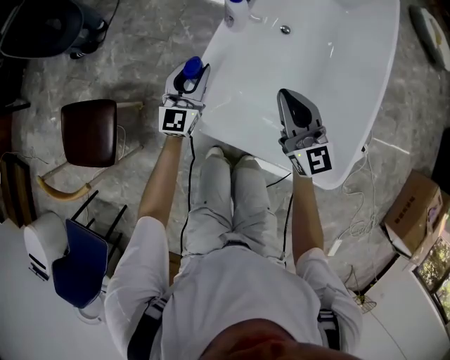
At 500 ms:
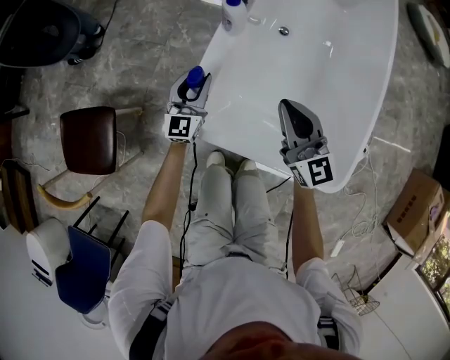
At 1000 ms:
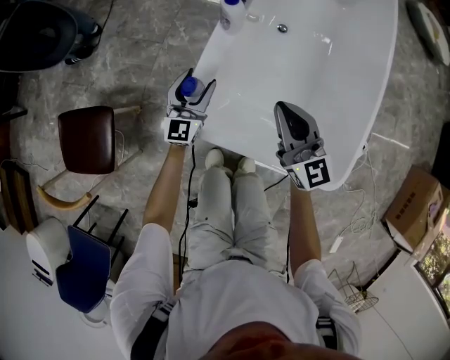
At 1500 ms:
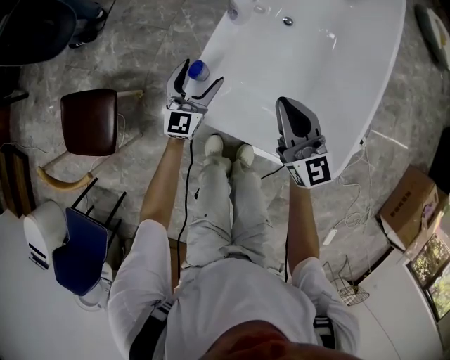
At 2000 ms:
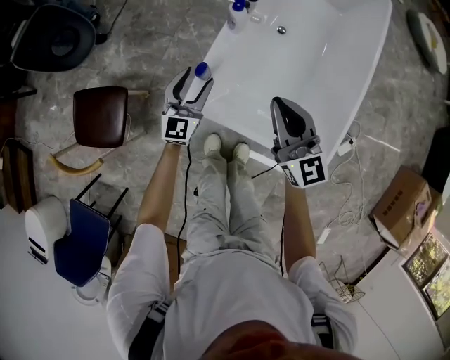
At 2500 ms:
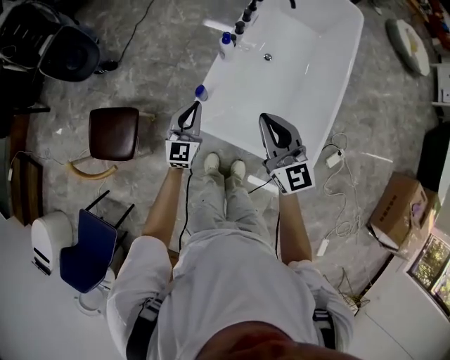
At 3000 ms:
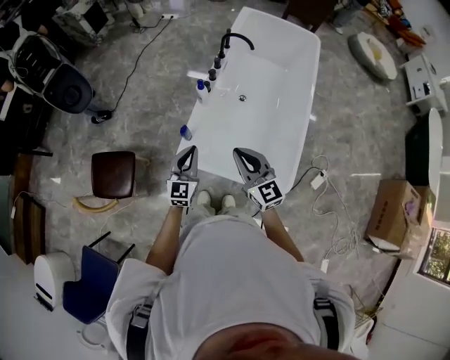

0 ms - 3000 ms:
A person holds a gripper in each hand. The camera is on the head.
0 ms - 1500 ms: The left gripper opens its fingers.
1500 ms - 3000 ms: The grippers both shift upward and backward by approximately 30 cm. The left gripper closes.

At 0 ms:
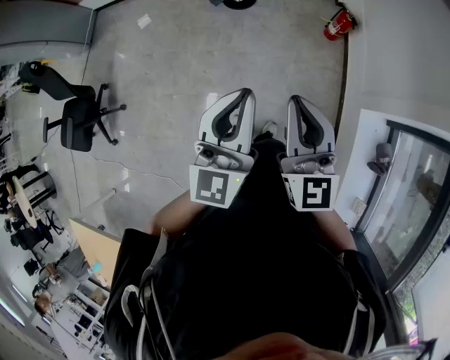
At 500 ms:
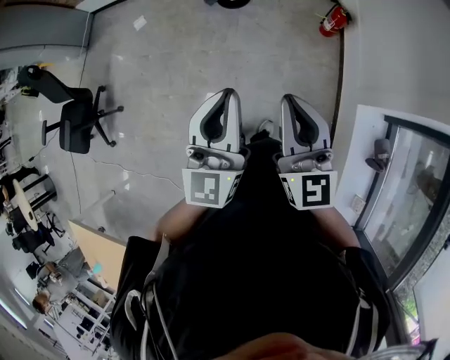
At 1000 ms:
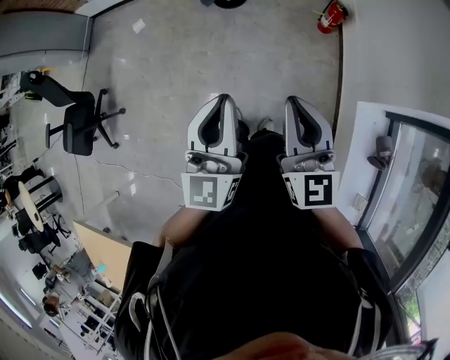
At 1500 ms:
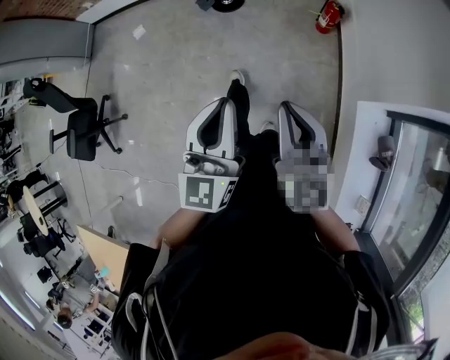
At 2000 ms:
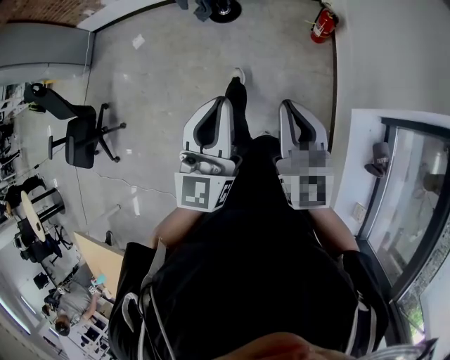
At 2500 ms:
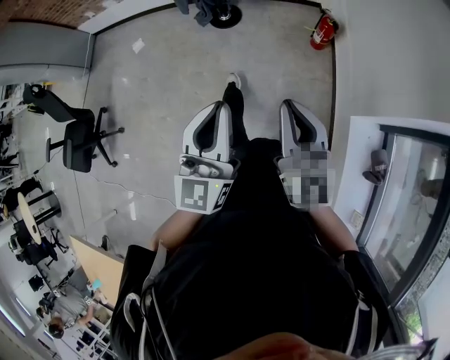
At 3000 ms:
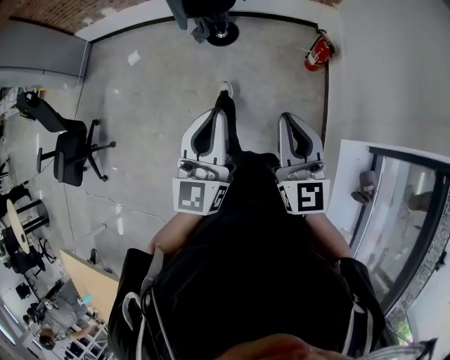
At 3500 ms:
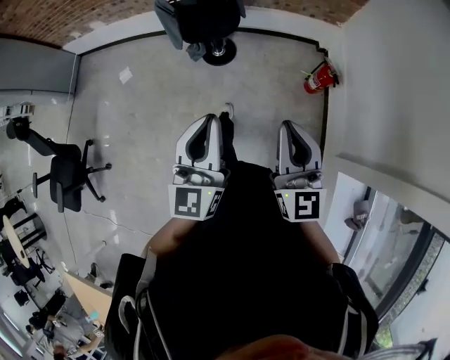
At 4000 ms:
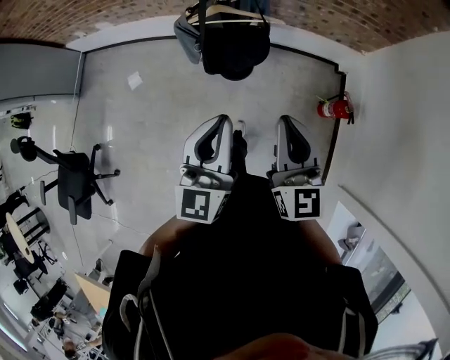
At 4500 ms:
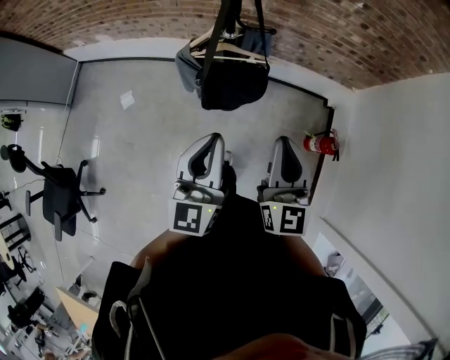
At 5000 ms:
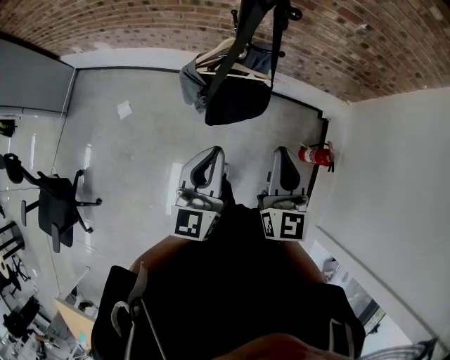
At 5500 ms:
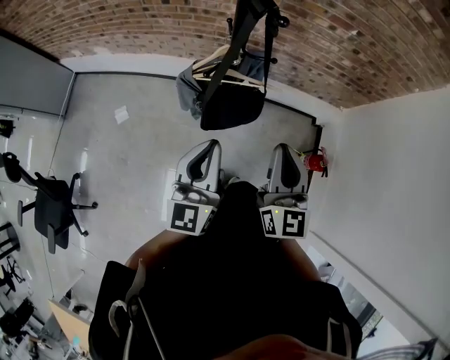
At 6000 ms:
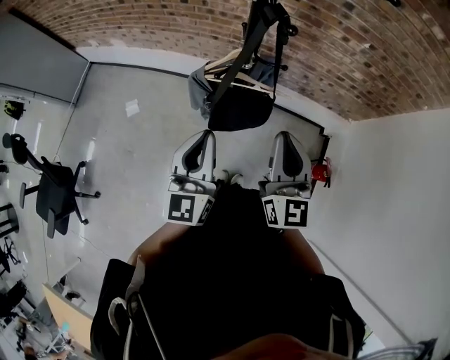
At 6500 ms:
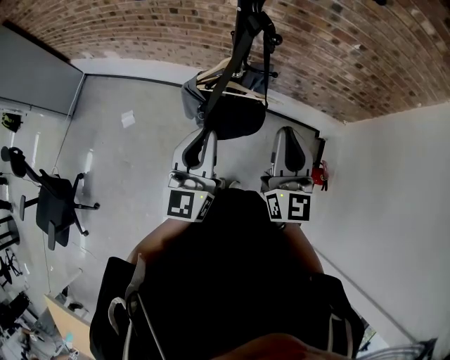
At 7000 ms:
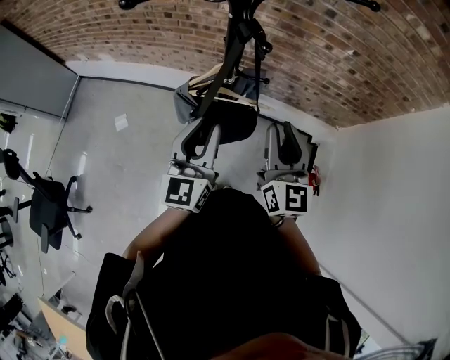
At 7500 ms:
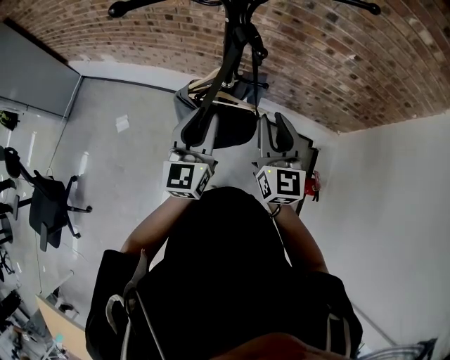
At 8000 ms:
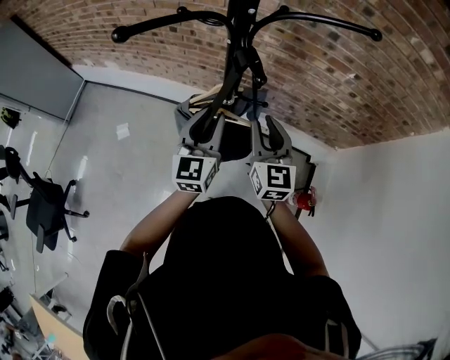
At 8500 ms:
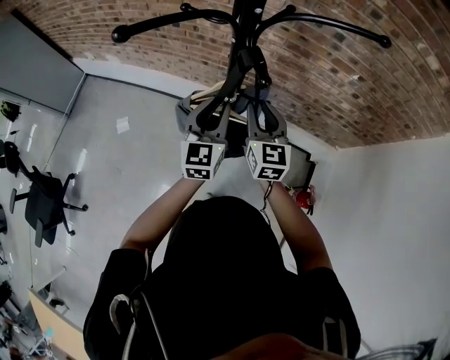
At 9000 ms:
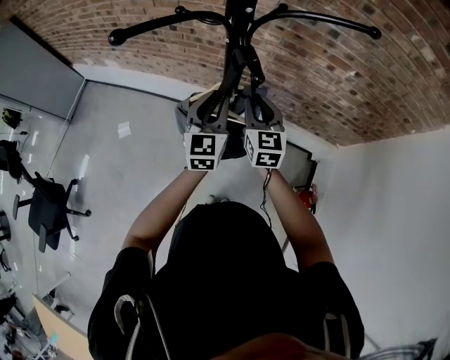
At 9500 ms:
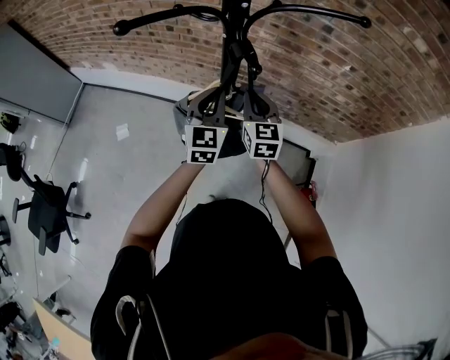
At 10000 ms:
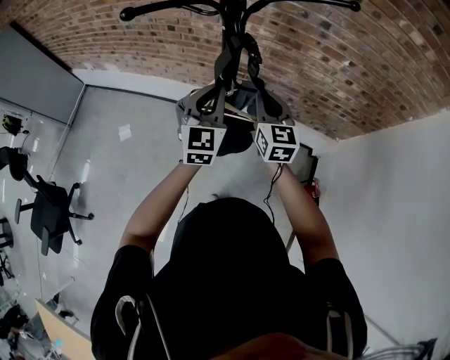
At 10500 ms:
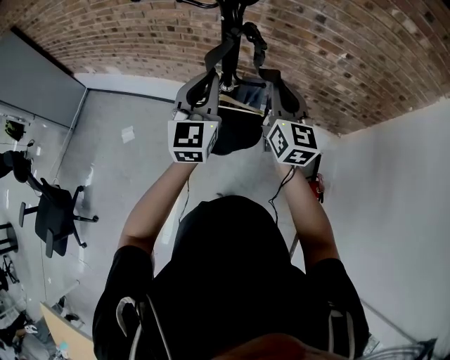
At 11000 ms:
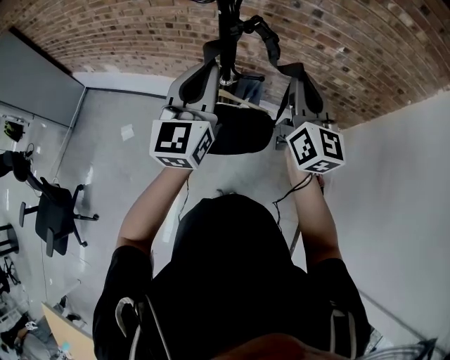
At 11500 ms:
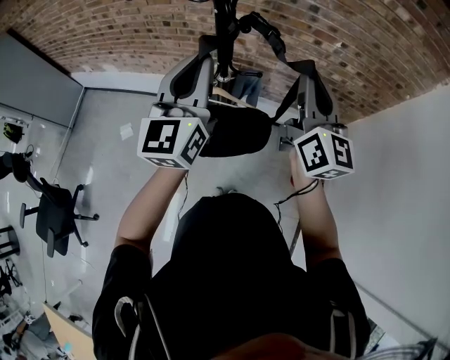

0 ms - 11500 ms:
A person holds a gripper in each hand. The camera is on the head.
0 ms - 2000 ms: The two grippers go about 10 cm to the right.
2000 ms - 4000 ms: Both grippers are carried forward, approximately 50 cm.
4000 ms - 6000 ms: The right gripper heads forward, covering about 15 cm; the left gripper is displaced forward and to the left by approximately 15 cm.
6000 ms - 7500 ms: The two grippers go about 10 cm forward.
7500 ms - 9500 ms: The left gripper goes roughly 10 cm forward. Meanwhile the right gripper heads forward and downward, covering roughly 15 cm.
9500 ms - 11500 ms: The left gripper moves upward and backward, some 20 cm, and swivels roughly 20 degrees; the right gripper travels upward, backward and to the right by approximately 25 cm, and rotates roughly 30 degrees.

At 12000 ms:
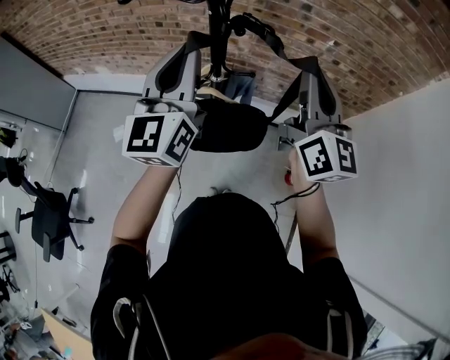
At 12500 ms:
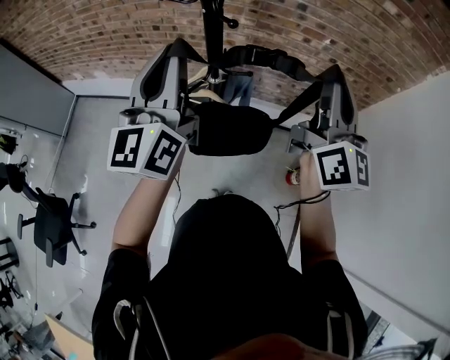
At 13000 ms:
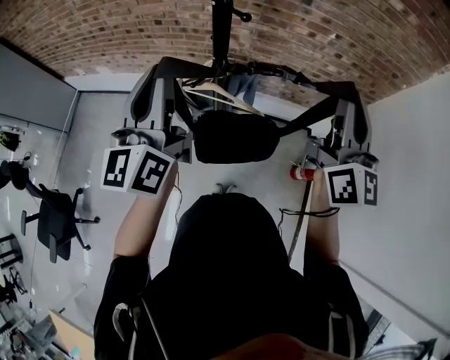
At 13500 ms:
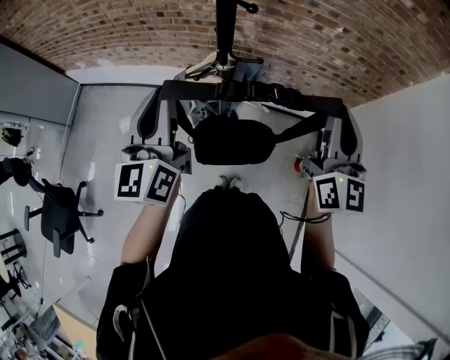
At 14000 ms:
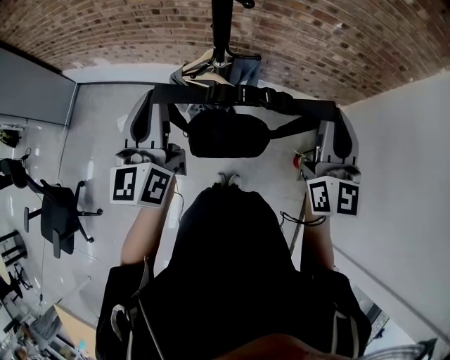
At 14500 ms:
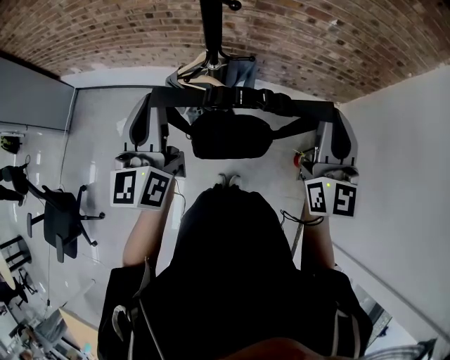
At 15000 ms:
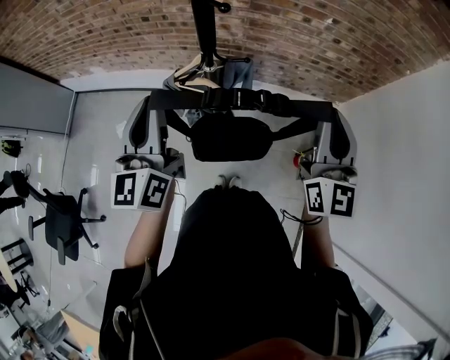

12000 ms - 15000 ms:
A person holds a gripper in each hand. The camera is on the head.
12000 ms - 13500 ms: The left gripper moves downward, backward and to the left, roughly 10 cm; the right gripper travels backward, to the right and downward by about 10 cm.
13500 ms - 15000 ms: The grippers make only small movements.

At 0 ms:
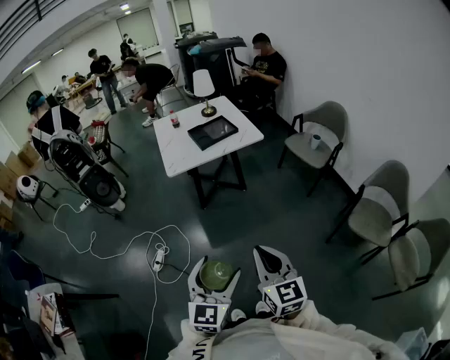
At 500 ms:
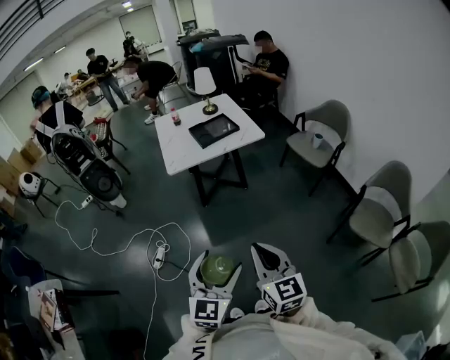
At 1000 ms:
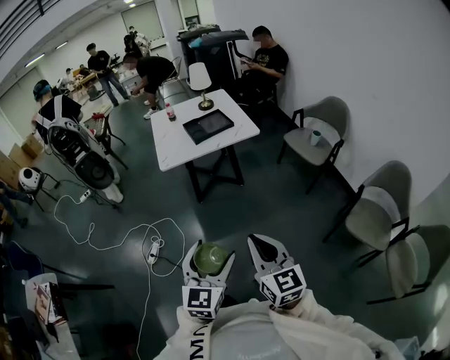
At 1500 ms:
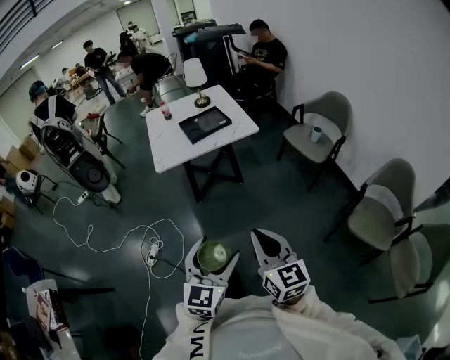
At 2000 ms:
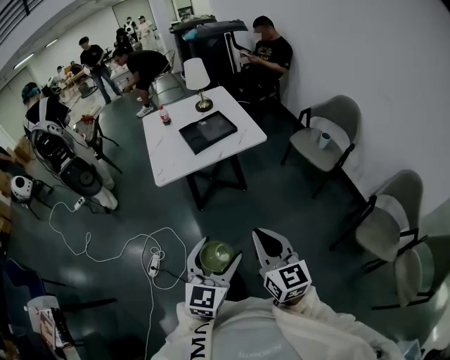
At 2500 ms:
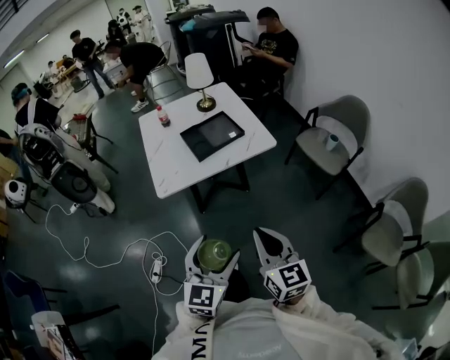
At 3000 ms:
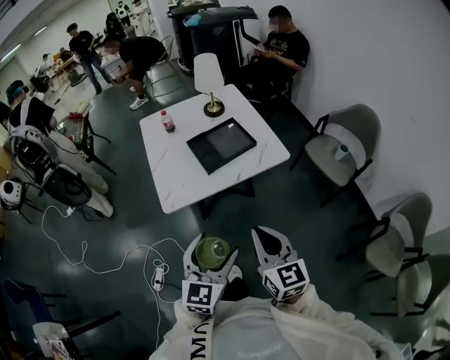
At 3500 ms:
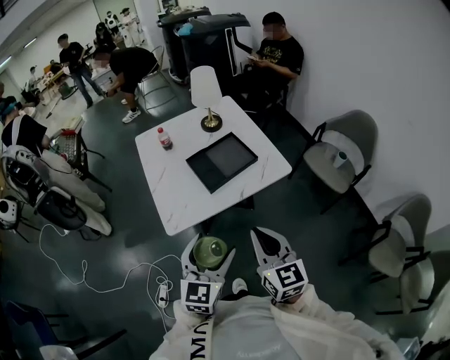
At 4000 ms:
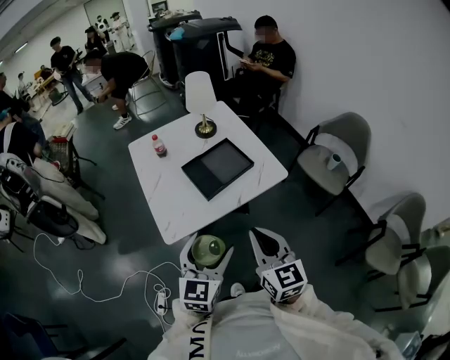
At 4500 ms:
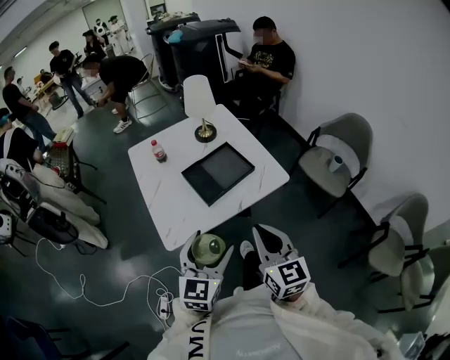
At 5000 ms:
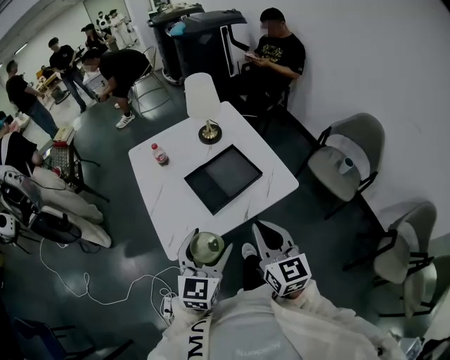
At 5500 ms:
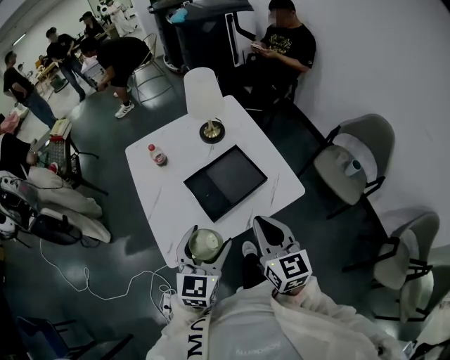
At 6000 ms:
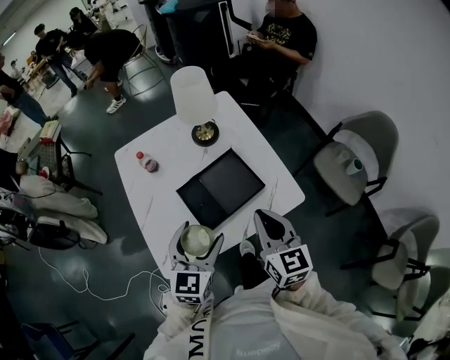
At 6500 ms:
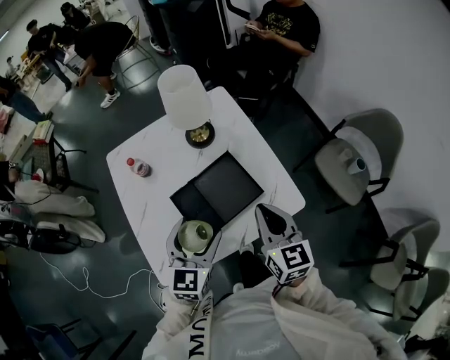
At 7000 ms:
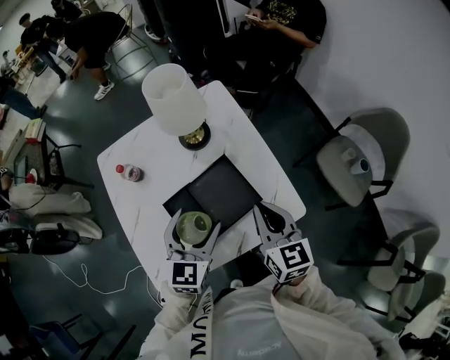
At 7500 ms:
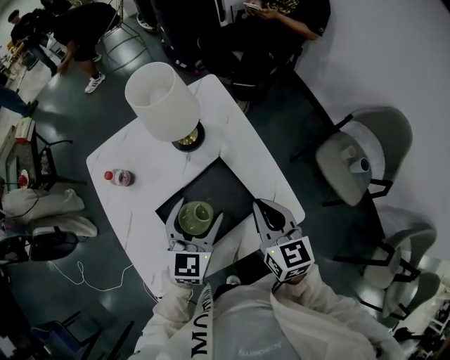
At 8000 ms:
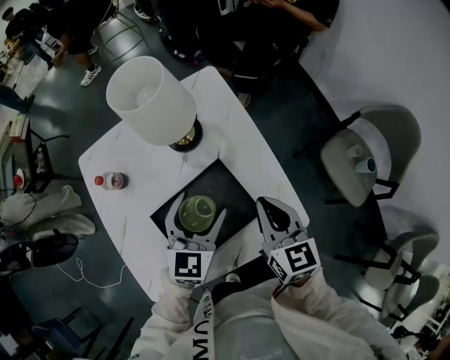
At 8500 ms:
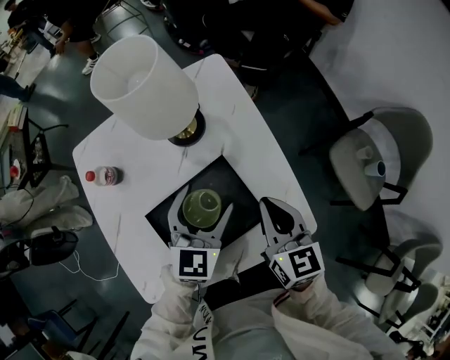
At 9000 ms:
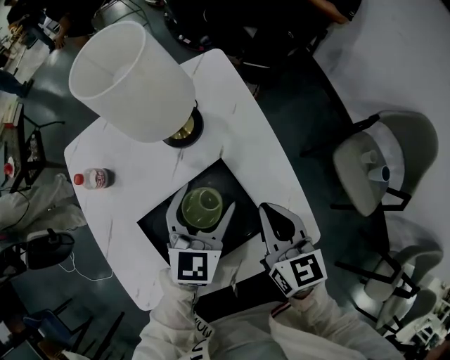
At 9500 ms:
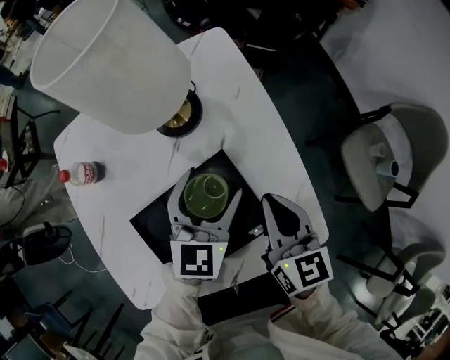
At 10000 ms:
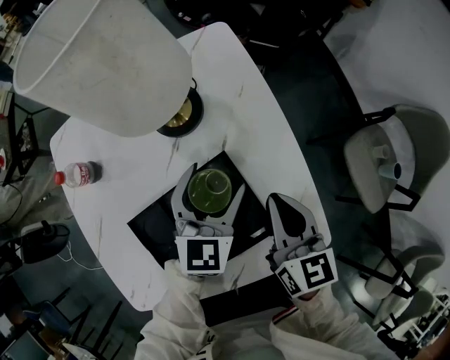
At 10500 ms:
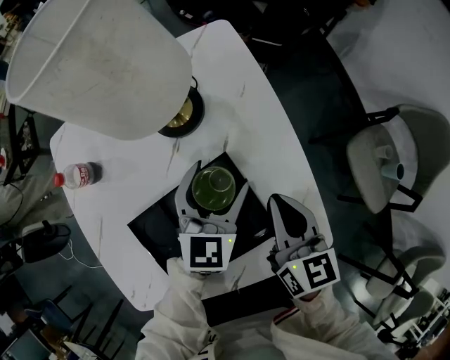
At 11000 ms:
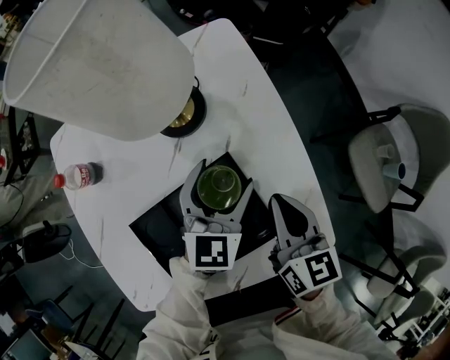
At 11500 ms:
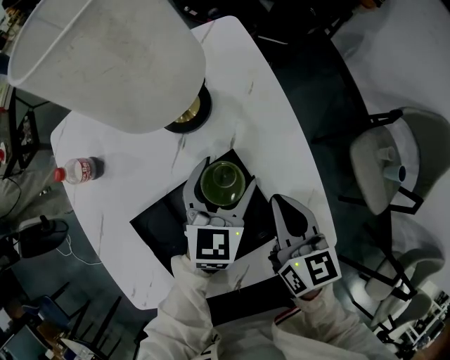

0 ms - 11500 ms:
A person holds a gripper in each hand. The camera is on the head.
0 ms - 2000 ms: The two grippers go roughly 20 cm forward.
2000 ms - 4000 ms: Both grippers move forward and to the left, approximately 35 cm.
4000 ms - 6000 ms: The grippers both shift forward by some 25 cm.
6000 ms - 7500 ms: The right gripper is displaced forward and downward by about 15 cm; the left gripper goes roughly 20 cm forward.
7500 ms - 9500 ms: The two grippers go roughly 15 cm downward and forward.
9500 ms - 11500 ms: The left gripper goes some 5 cm downward.
